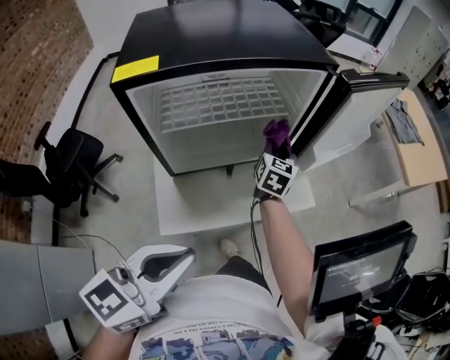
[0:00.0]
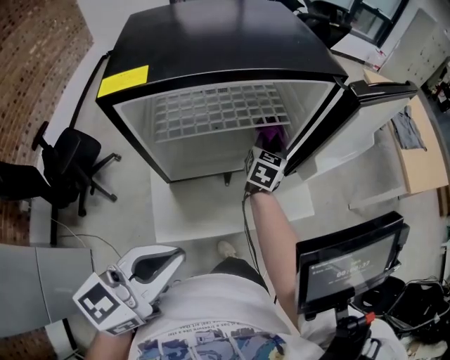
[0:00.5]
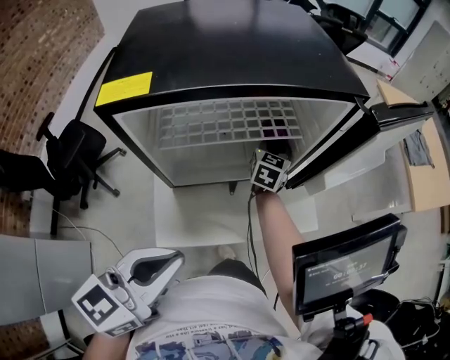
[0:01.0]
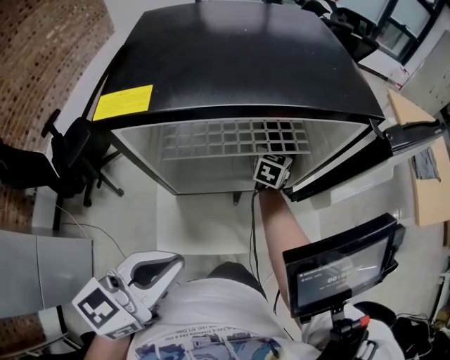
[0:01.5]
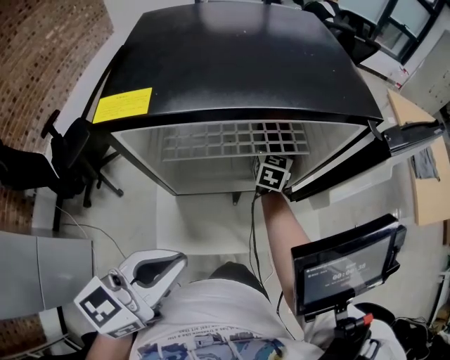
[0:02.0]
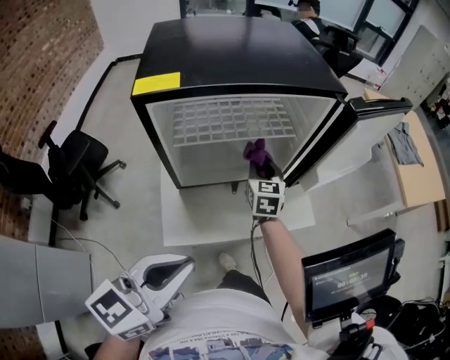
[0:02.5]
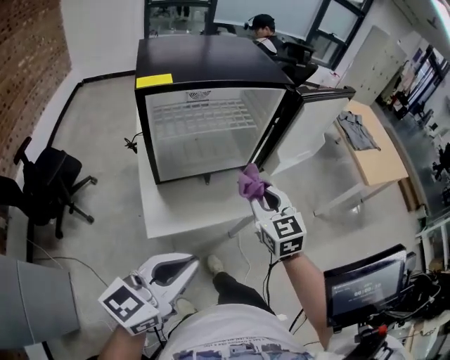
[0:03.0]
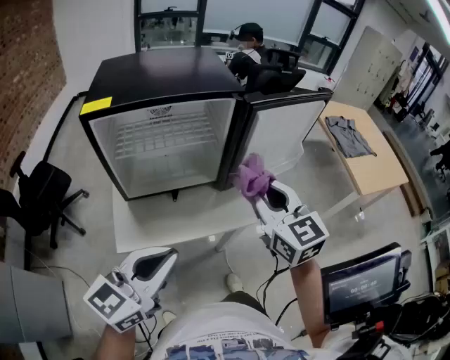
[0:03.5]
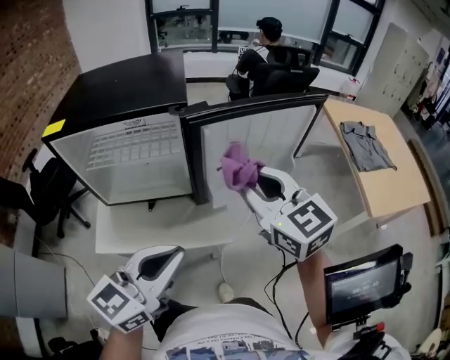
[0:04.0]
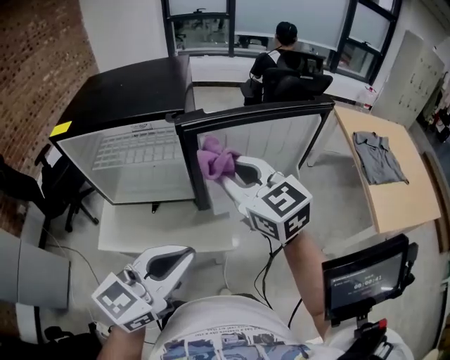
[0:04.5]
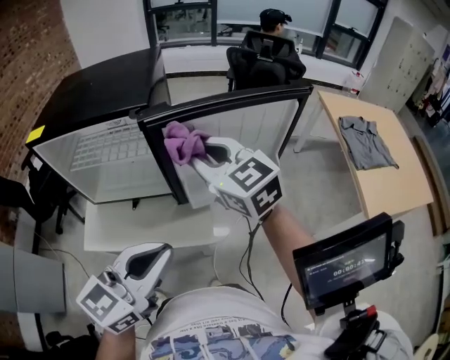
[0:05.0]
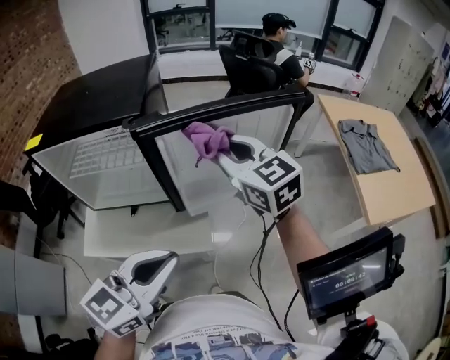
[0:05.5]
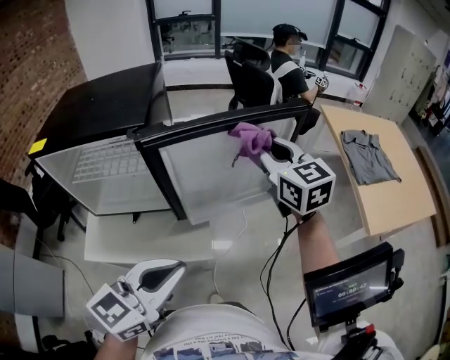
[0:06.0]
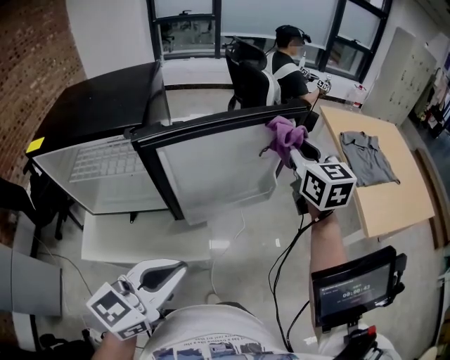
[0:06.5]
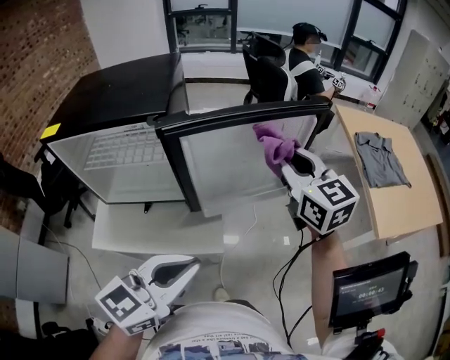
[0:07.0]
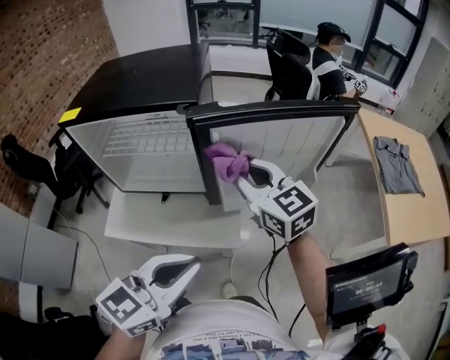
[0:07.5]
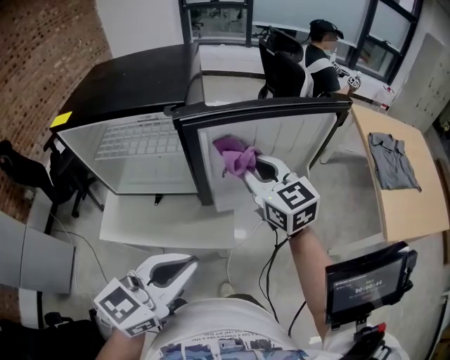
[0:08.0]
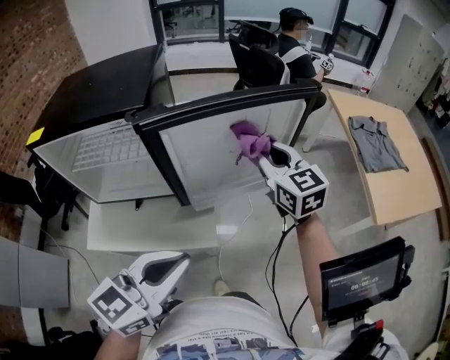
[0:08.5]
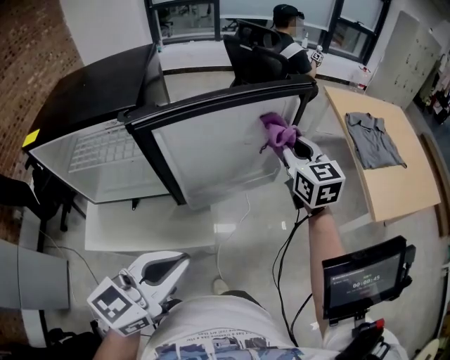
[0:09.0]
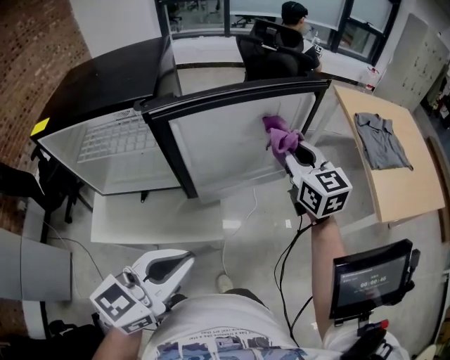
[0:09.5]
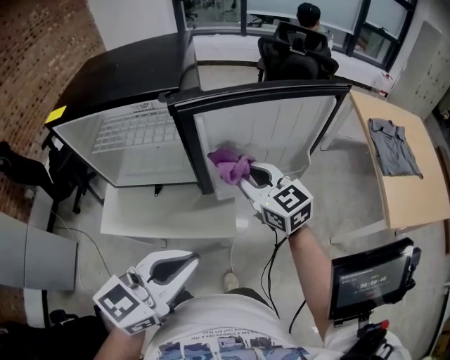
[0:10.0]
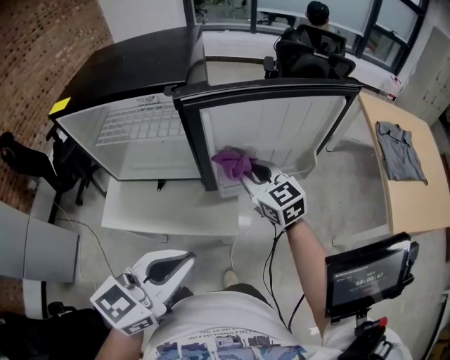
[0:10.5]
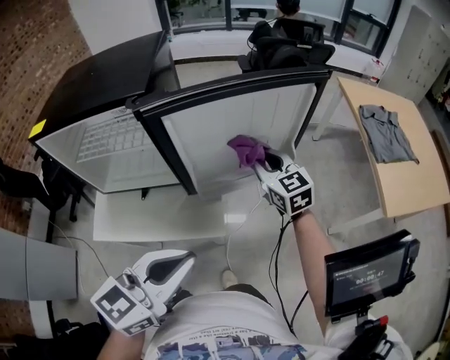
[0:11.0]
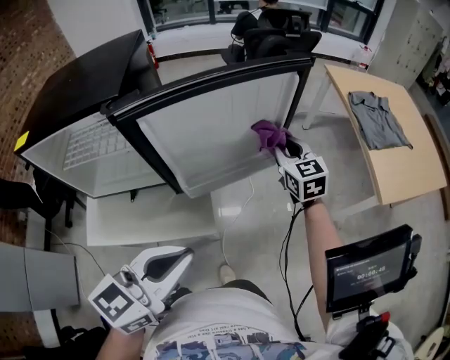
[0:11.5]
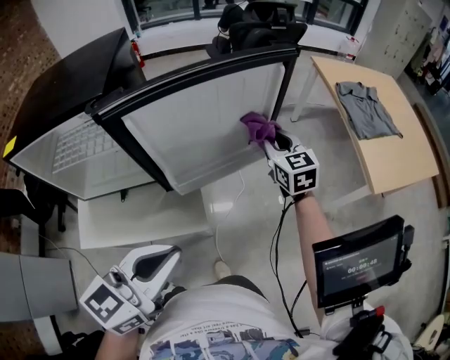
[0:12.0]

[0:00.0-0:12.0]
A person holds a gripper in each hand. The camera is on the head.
0:00.0 to 0:02.0: The right gripper is displaced to the left and forward by approximately 15 cm, while the left gripper travels forward and to the left by roughly 10 cm.
0:02.0 to 0:04.0: The right gripper goes some 40 cm upward, to the right and backward, and rotates about 40 degrees; the left gripper goes roughly 30 cm to the right.
0:04.0 to 0:06.0: The left gripper goes approximately 10 cm to the right. Meanwhile the right gripper is displaced forward and to the right by about 20 cm.
0:06.0 to 0:08.0: The right gripper travels to the left, downward and backward by approximately 15 cm.
0:08.0 to 0:10.0: The right gripper heads downward, covering roughly 5 cm, and reaches approximately 20 cm to the right, then returns.
0:10.0 to 0:12.0: The right gripper heads to the right and forward, covering about 25 cm, and swivels roughly 30 degrees. The left gripper shifts by some 5 cm.

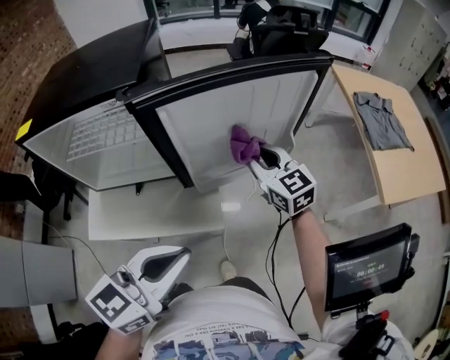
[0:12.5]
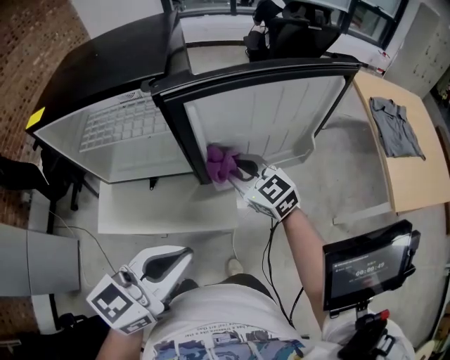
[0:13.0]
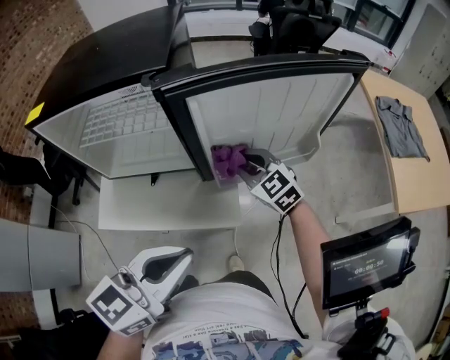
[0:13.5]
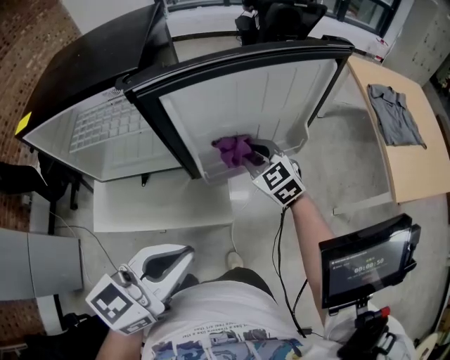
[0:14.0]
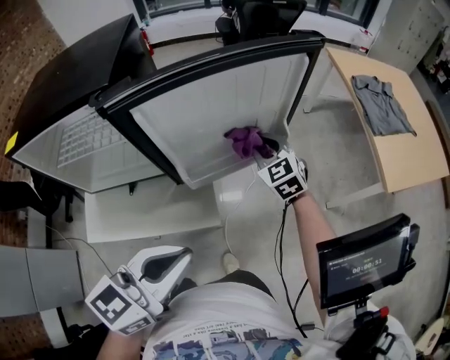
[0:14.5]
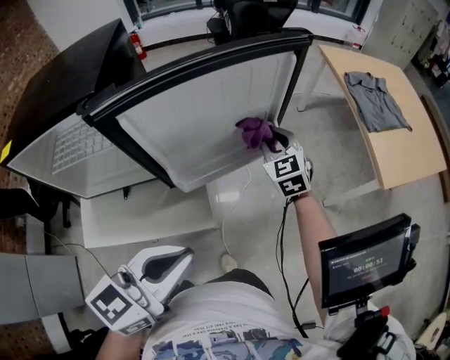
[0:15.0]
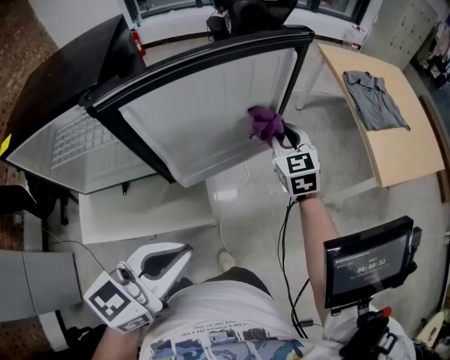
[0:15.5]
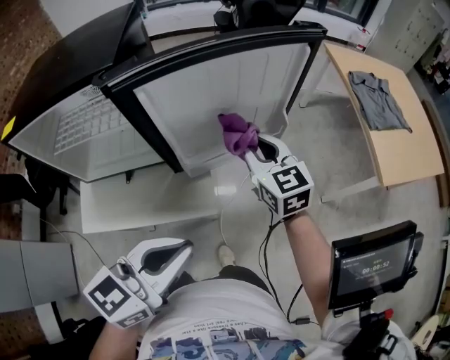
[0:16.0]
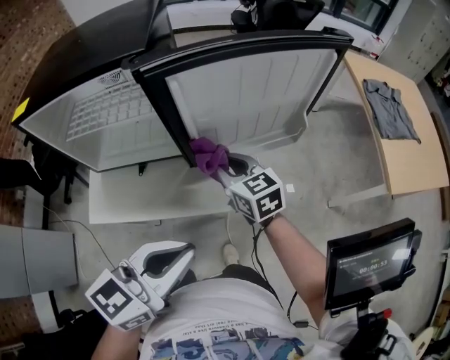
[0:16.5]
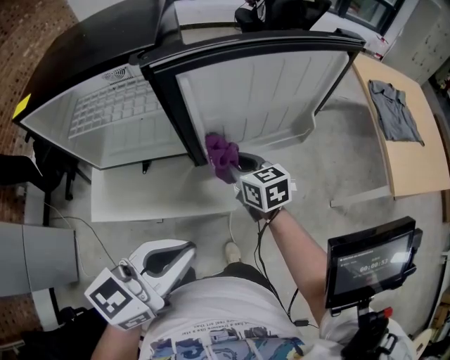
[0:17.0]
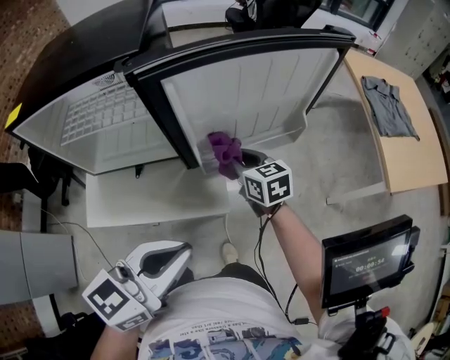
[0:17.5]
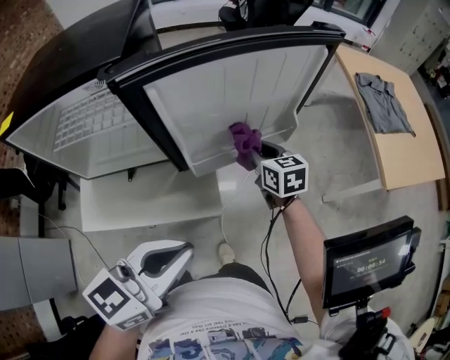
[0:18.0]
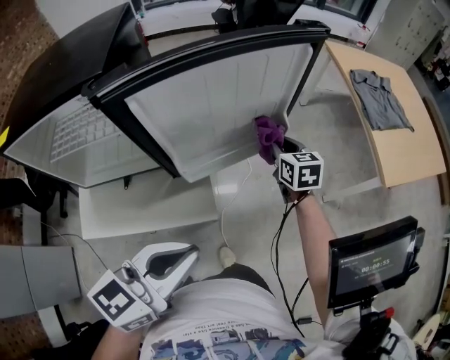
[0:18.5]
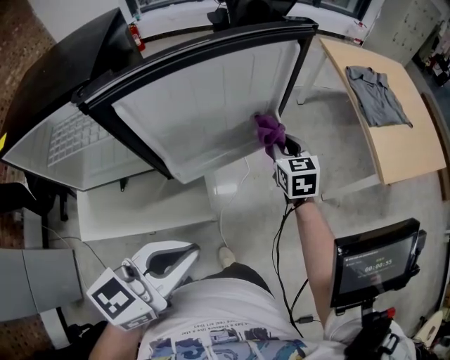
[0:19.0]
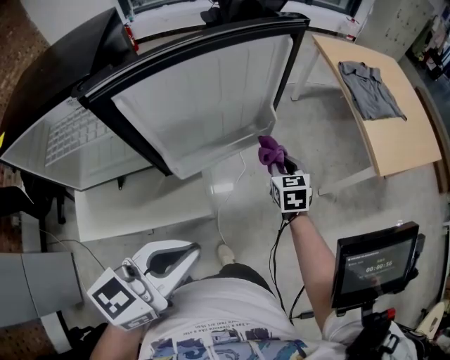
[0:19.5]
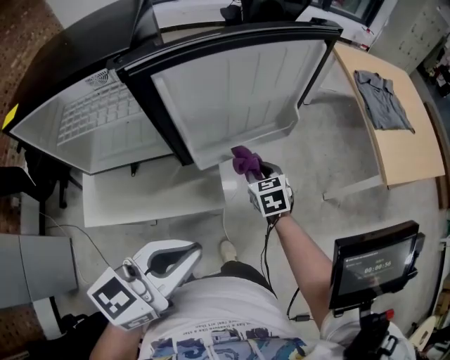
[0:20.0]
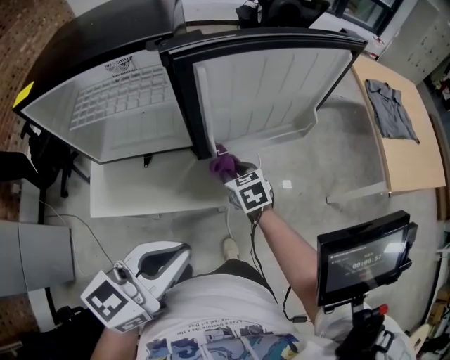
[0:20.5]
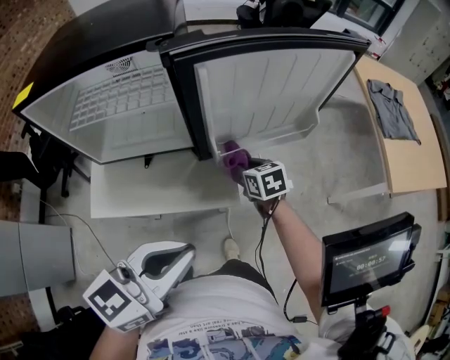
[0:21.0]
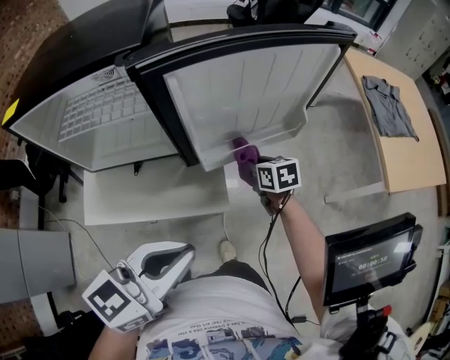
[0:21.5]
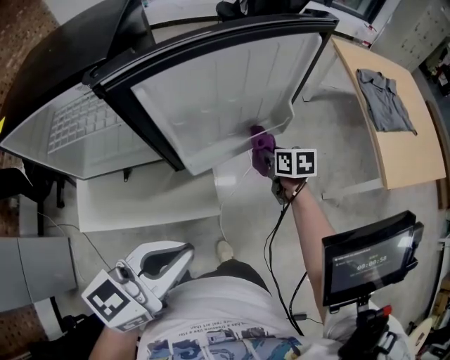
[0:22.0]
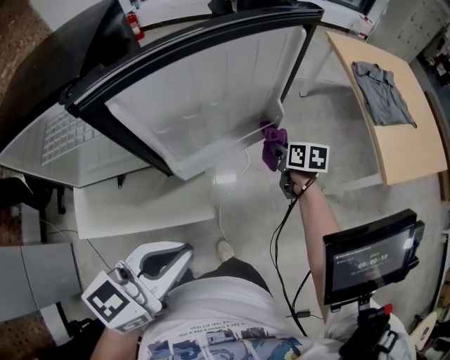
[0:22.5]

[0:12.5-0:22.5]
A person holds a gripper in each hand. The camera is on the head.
0:12.5 to 0:14.5: The right gripper goes about 5 cm downward, moves roughly 15 cm to the left and comes back, and changes its angle by about 20 degrees.
0:14.5 to 0:16.5: The right gripper shifts some 20 cm backward and to the left, and changes its angle by approximately 30 degrees.
0:16.5 to 0:18.5: The right gripper goes approximately 25 cm to the right and forward, and turns by some 30 degrees; the left gripper shifts by some 5 cm.
0:18.5 to 0:20.5: The right gripper travels to the left and backward by roughly 25 cm, and rotates some 30 degrees, while the left gripper travels to the left and backward by approximately 10 cm.
0:20.5 to 0:22.5: The right gripper travels to the right and forward by approximately 25 cm, and turns by roughly 40 degrees, while the left gripper moves to the right and forward, roughly 10 cm.

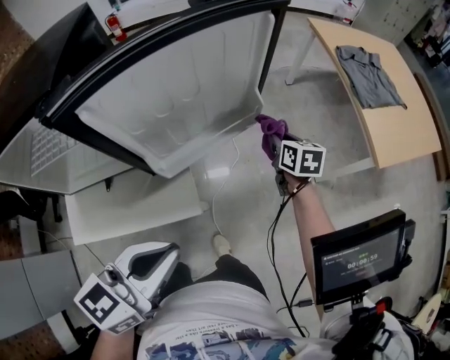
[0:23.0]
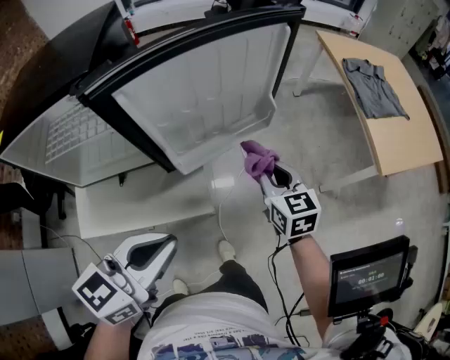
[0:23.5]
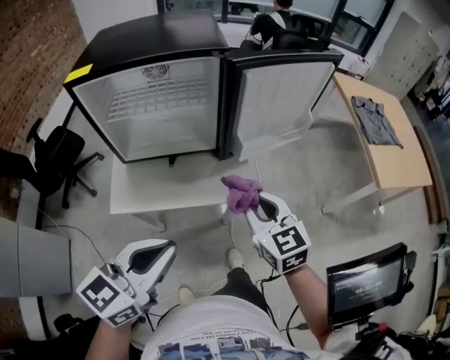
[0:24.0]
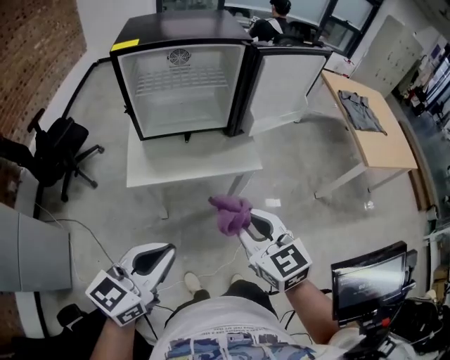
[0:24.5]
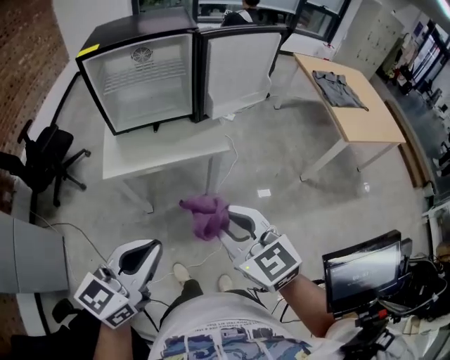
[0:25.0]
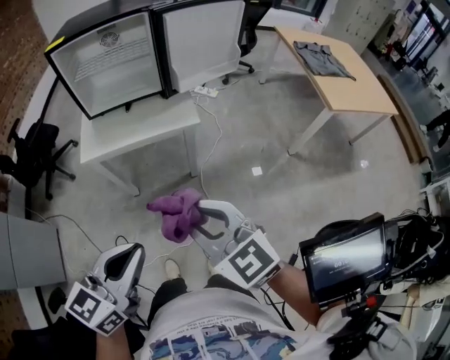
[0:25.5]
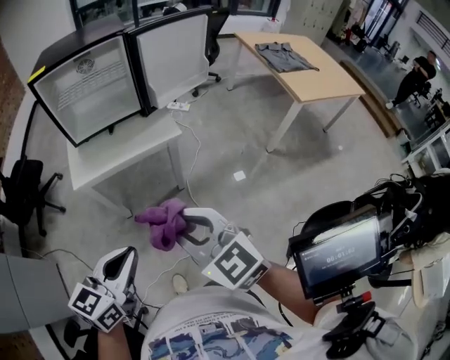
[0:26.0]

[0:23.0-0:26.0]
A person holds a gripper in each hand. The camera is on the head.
0:23.0 to 0:24.5: The left gripper travels backward and to the left by about 35 cm; the right gripper is displaced backward and to the left by some 60 cm, and swivels some 40 degrees.
0:24.5 to 0:26.0: The right gripper shifts roughly 15 cm backward and upward. Meanwhile the left gripper moves backward and to the right, some 10 cm.

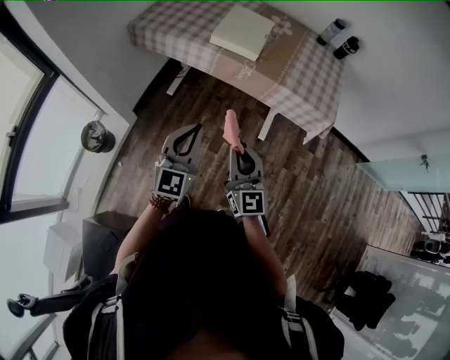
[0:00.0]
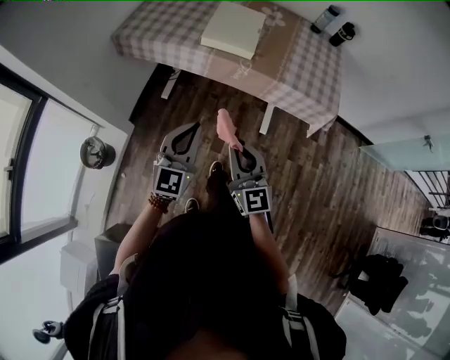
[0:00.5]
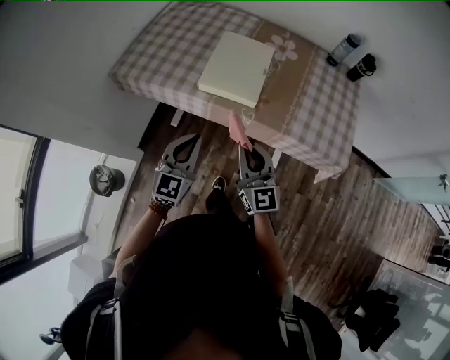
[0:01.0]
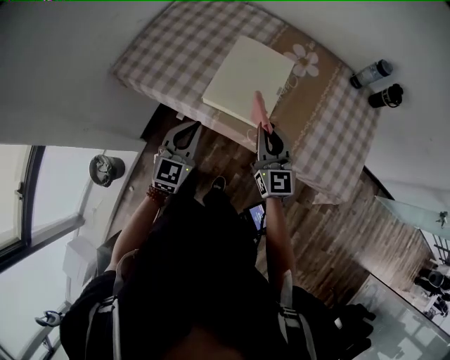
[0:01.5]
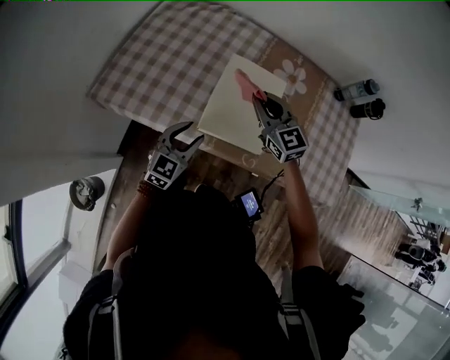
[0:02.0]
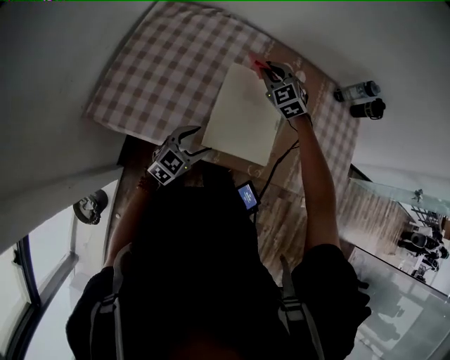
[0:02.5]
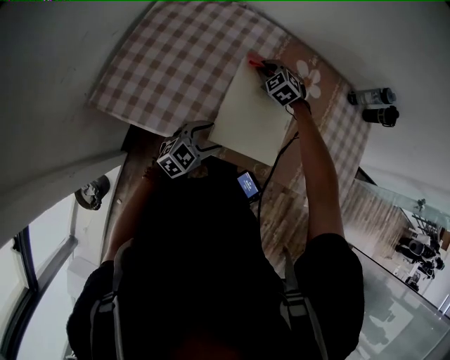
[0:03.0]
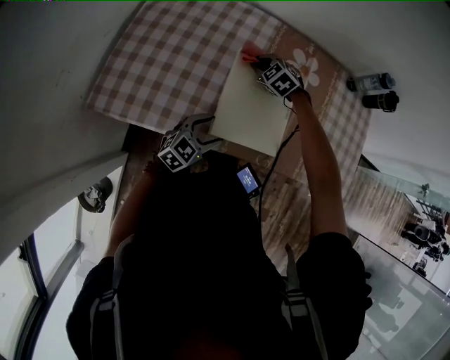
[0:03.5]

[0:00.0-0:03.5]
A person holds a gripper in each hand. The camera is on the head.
0:00.0 to 0:02.0: The two grippers travel together, forward, some 60 cm. The left gripper turns by about 20 degrees, and opens its fingers, while the right gripper swivels some 30 degrees.
0:02.0 to 0:03.5: The left gripper heads downward, covering about 10 cm, and turns by roughly 30 degrees. The right gripper moves downward and forward, some 25 cm, and tilts its fingers approximately 40 degrees downward.
